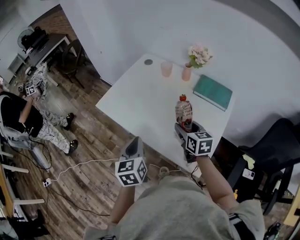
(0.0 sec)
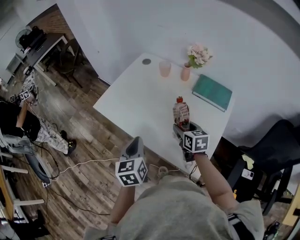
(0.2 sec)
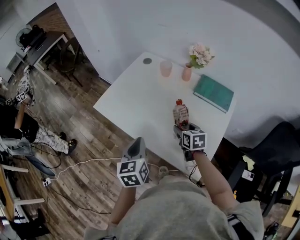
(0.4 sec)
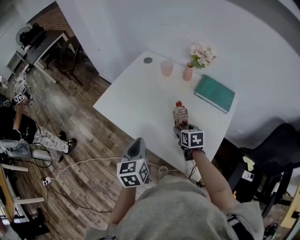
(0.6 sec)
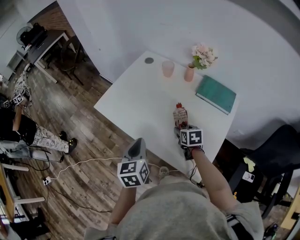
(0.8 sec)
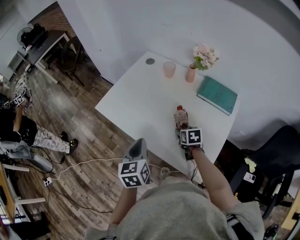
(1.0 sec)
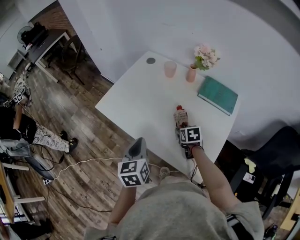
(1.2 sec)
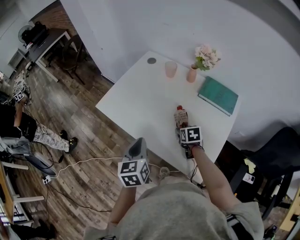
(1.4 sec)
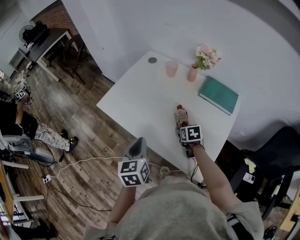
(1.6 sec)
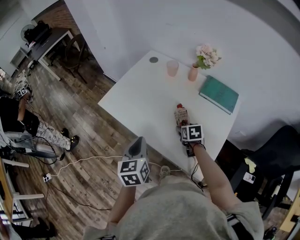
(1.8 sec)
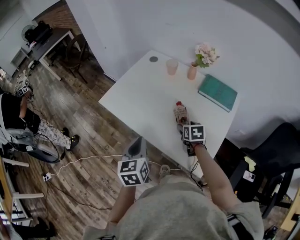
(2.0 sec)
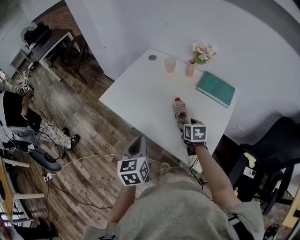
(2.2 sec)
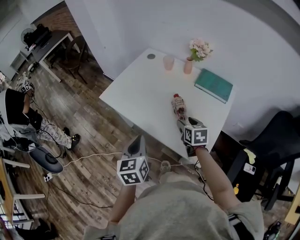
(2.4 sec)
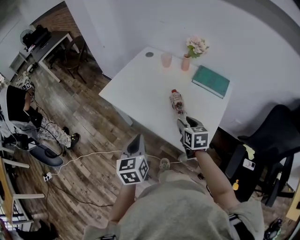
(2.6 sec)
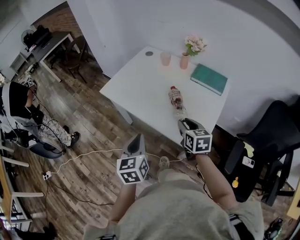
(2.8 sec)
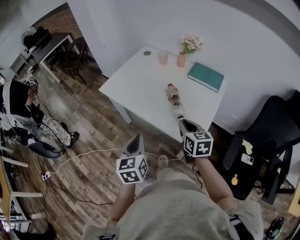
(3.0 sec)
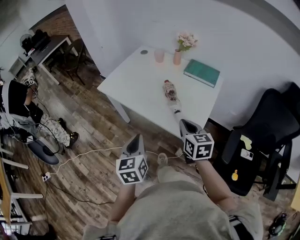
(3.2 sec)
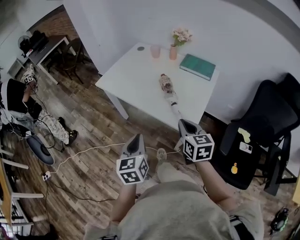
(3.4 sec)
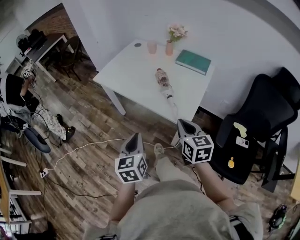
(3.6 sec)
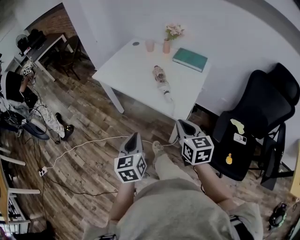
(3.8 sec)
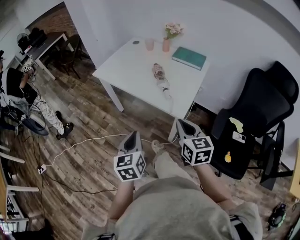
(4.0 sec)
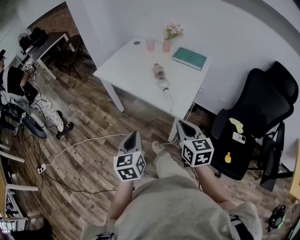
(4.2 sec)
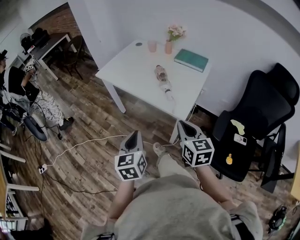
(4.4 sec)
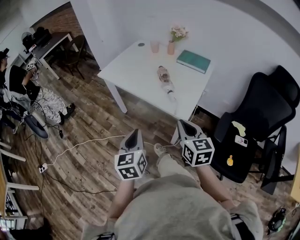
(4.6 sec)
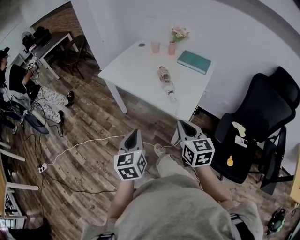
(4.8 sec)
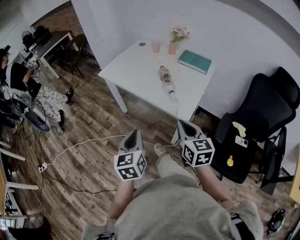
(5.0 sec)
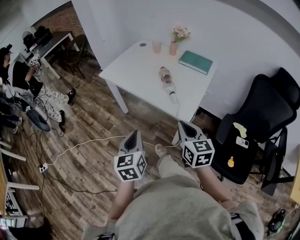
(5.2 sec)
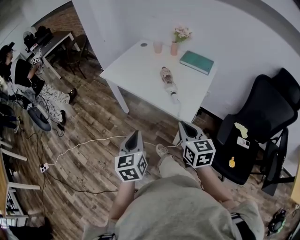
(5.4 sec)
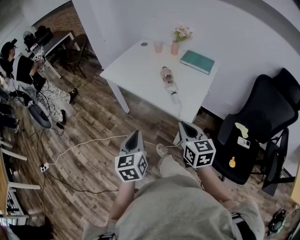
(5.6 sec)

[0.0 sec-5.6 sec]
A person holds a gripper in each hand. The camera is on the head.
0.0 sec to 1.4 sec: The right gripper heads downward, covering about 15 cm, and turns by some 30 degrees.
1.4 sec to 2.8 sec: The left gripper is displaced backward by approximately 15 cm, while the right gripper goes about 25 cm backward and upward, turns by approximately 30 degrees, and closes.
2.8 sec to 4.2 sec: Both grippers move backward, roughly 25 cm. The right gripper closes.
4.2 sec to 5.6 sec: There are only small adjustments of the grippers.

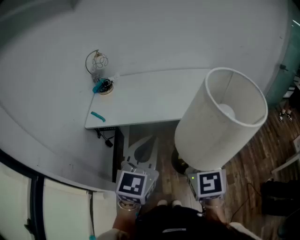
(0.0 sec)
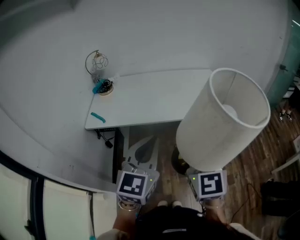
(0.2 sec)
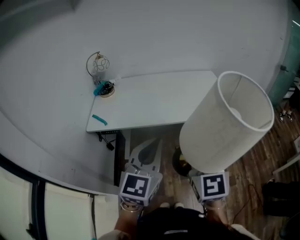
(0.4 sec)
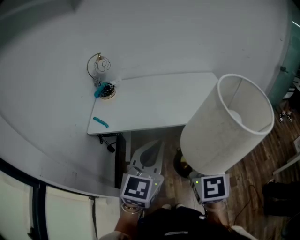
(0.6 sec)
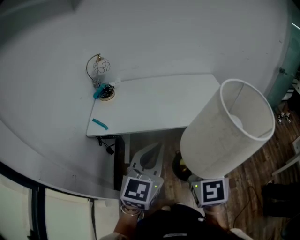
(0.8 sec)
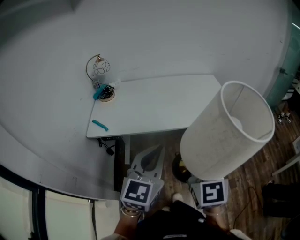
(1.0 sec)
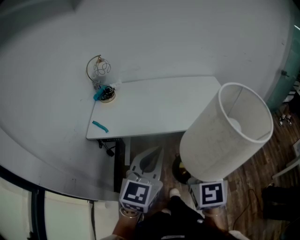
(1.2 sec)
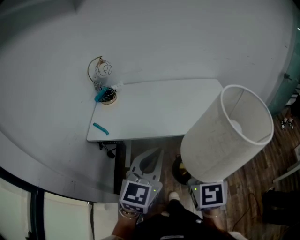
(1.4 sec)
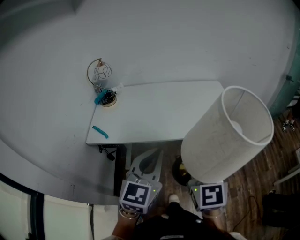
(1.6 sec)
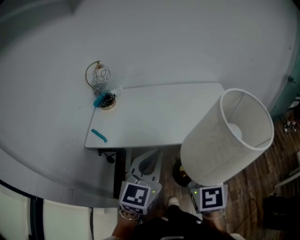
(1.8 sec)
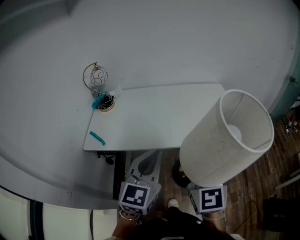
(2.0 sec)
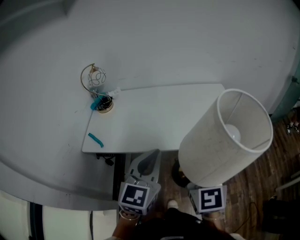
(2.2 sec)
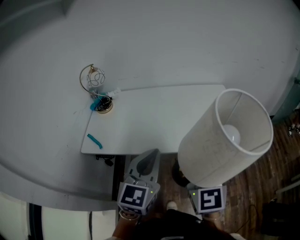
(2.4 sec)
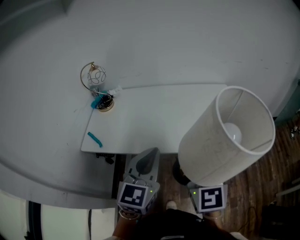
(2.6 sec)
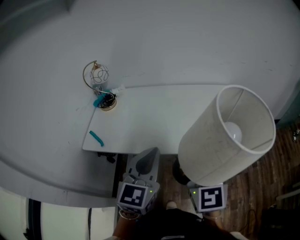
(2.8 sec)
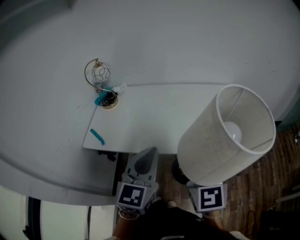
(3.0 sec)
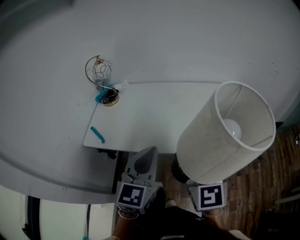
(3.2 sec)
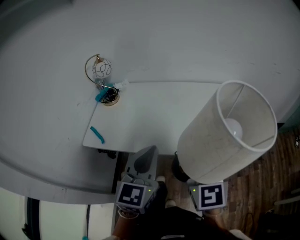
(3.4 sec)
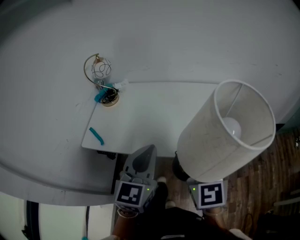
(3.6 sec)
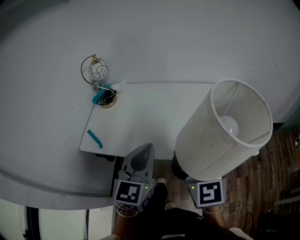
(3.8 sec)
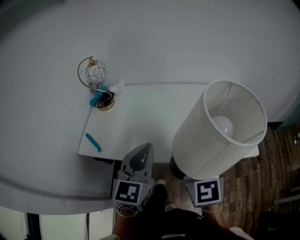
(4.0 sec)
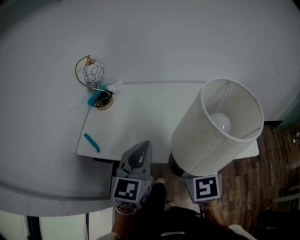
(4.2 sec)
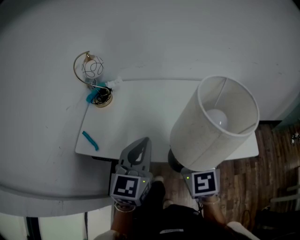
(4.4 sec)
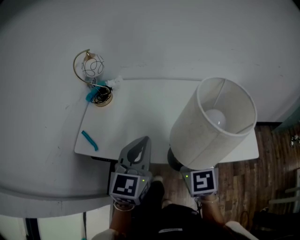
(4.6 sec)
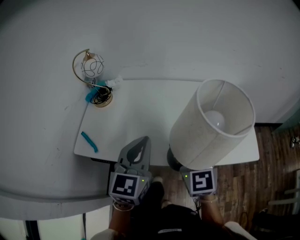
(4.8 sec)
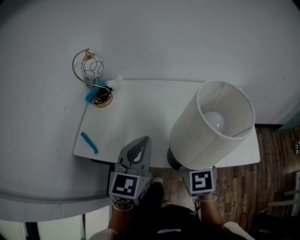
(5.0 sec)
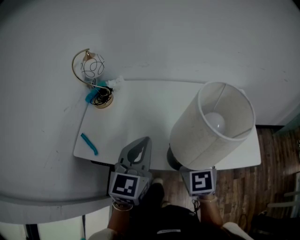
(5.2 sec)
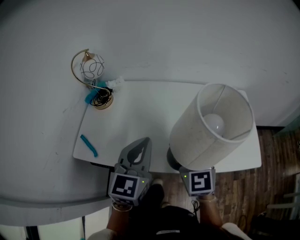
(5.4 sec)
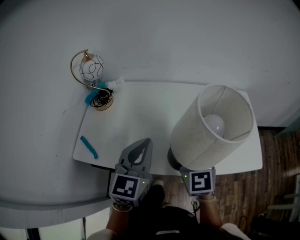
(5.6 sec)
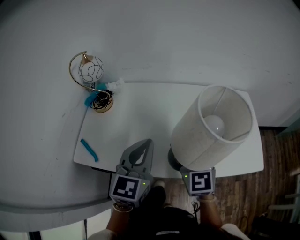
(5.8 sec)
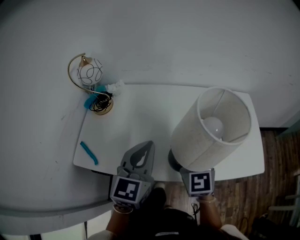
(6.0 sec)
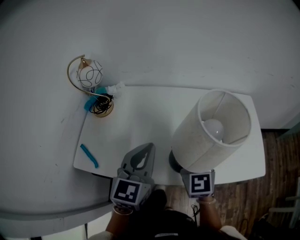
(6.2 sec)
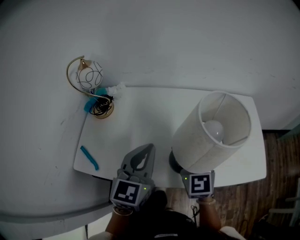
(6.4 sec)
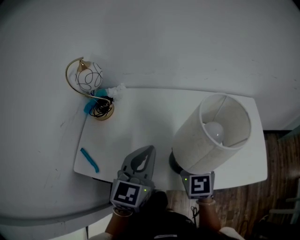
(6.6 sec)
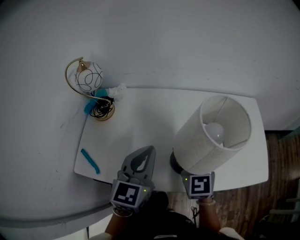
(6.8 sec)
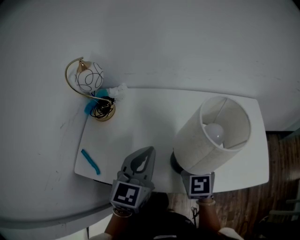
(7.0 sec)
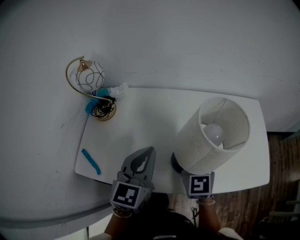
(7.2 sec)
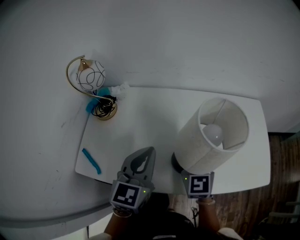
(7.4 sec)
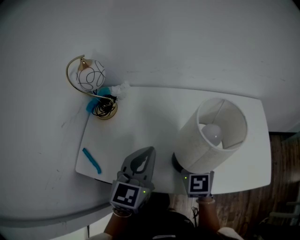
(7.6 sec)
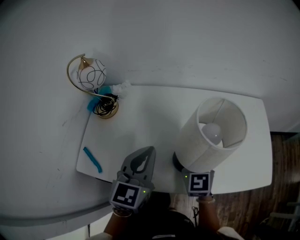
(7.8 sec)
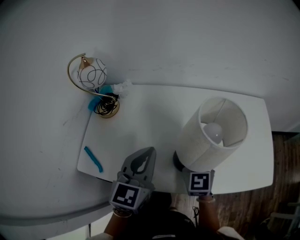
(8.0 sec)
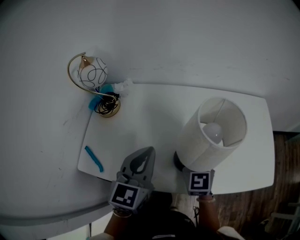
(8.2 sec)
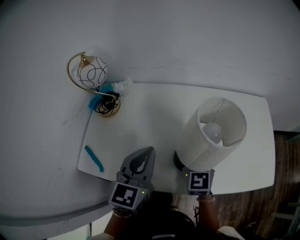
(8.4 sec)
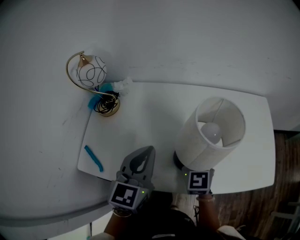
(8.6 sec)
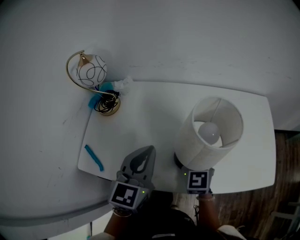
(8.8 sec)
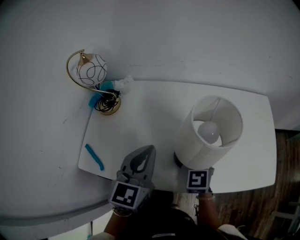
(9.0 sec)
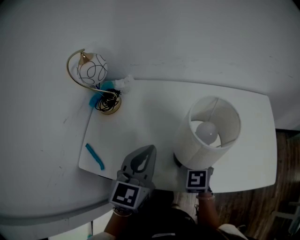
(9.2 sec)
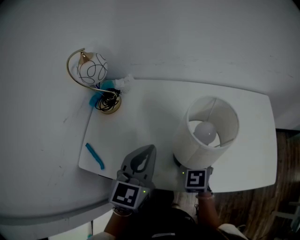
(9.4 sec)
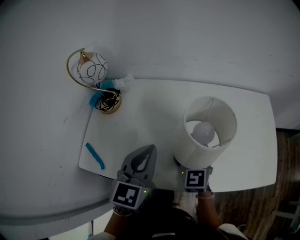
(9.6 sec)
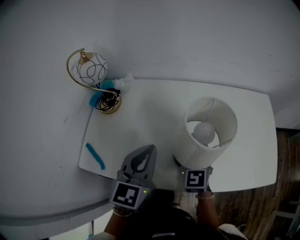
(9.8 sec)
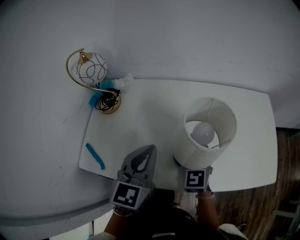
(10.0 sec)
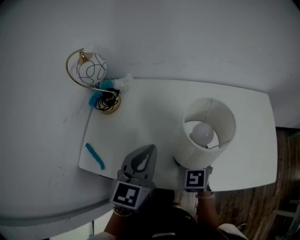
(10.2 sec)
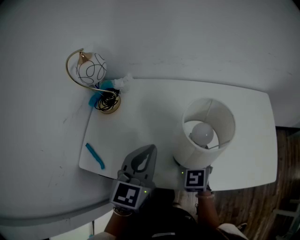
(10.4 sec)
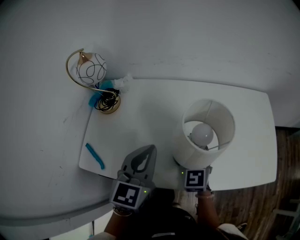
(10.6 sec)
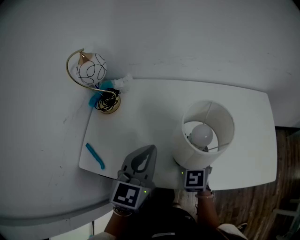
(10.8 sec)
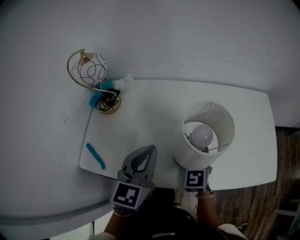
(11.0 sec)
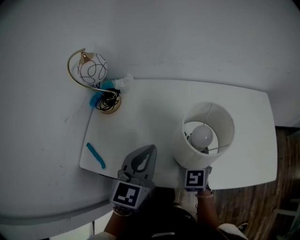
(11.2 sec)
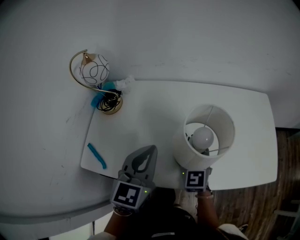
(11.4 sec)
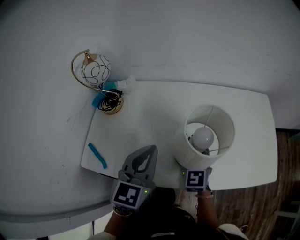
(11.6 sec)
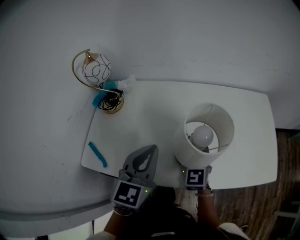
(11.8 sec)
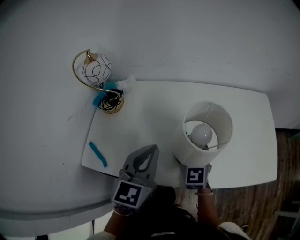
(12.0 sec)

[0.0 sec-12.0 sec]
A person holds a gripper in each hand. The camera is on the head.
0.0 sec to 1.6 sec: The two grippers go roughly 10 cm forward.
1.6 sec to 3.0 sec: Both grippers travel together forward, some 15 cm.
3.0 sec to 4.4 sec: The right gripper is displaced forward by approximately 15 cm. The left gripper shifts approximately 15 cm forward and to the left.
4.4 sec to 6.0 sec: The left gripper is displaced forward by some 10 cm. Meanwhile the right gripper goes roughly 15 cm forward and downward.
6.0 sec to 7.6 sec: The left gripper moves forward, some 5 cm. The right gripper moves forward and downward, roughly 10 cm.
7.6 sec to 12.0 sec: The grippers make only small movements.

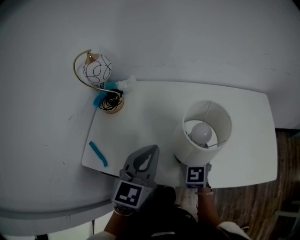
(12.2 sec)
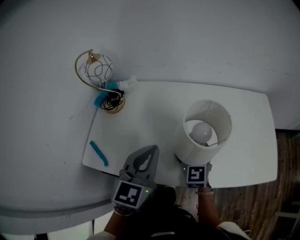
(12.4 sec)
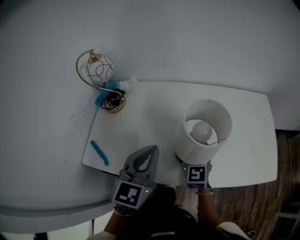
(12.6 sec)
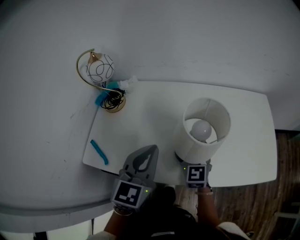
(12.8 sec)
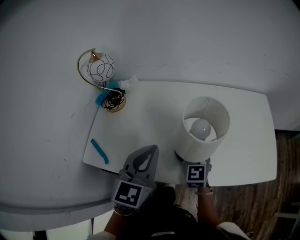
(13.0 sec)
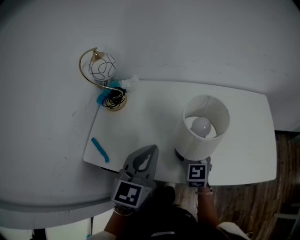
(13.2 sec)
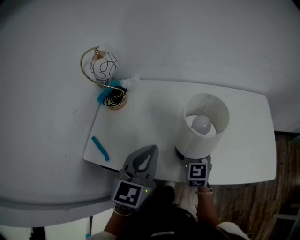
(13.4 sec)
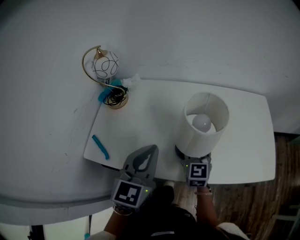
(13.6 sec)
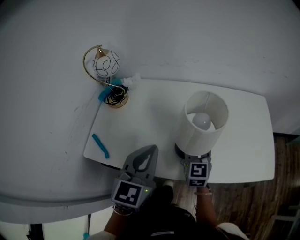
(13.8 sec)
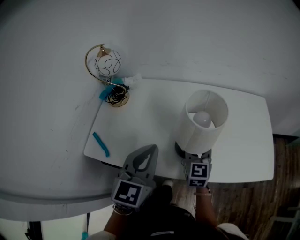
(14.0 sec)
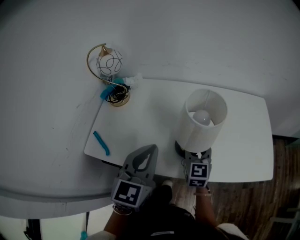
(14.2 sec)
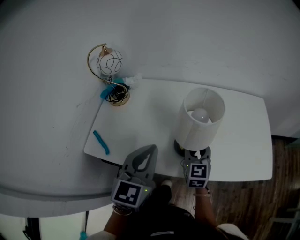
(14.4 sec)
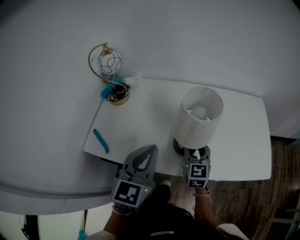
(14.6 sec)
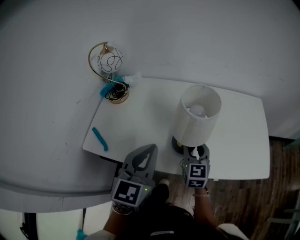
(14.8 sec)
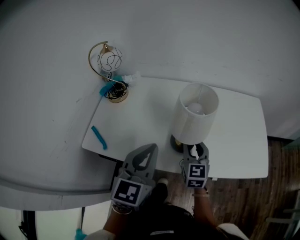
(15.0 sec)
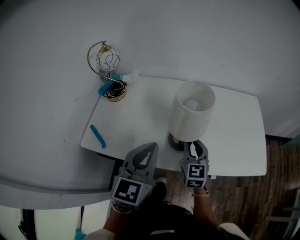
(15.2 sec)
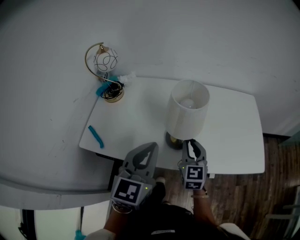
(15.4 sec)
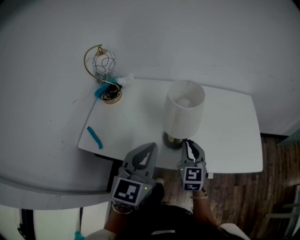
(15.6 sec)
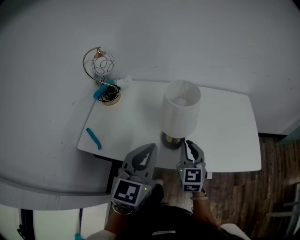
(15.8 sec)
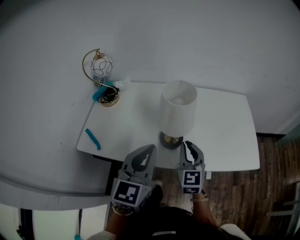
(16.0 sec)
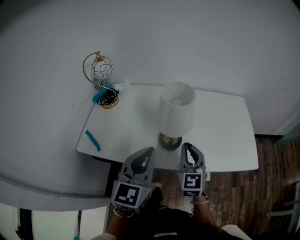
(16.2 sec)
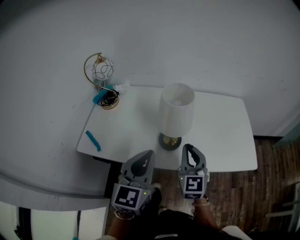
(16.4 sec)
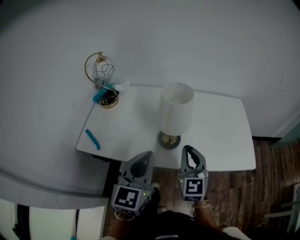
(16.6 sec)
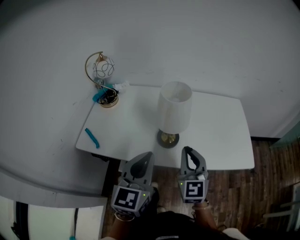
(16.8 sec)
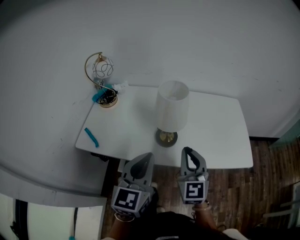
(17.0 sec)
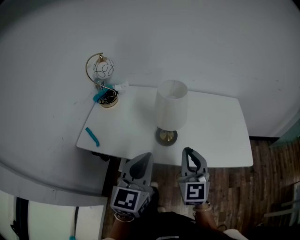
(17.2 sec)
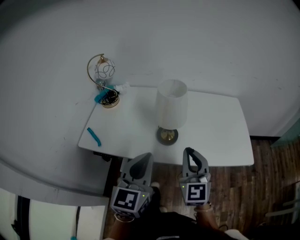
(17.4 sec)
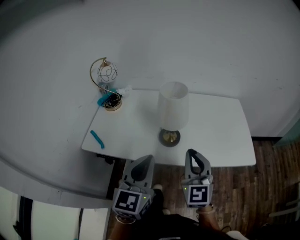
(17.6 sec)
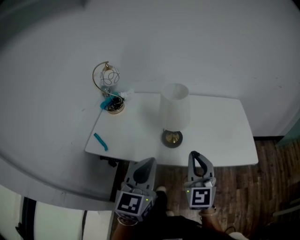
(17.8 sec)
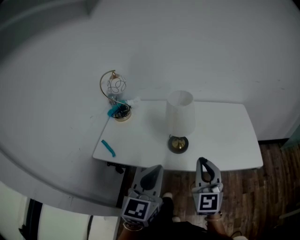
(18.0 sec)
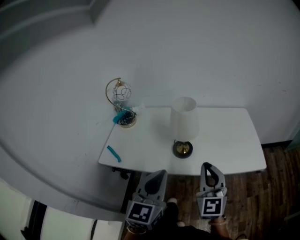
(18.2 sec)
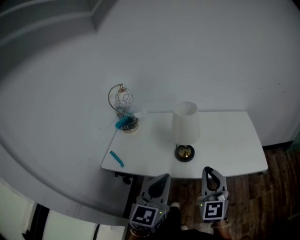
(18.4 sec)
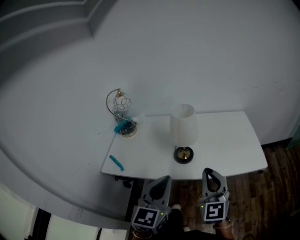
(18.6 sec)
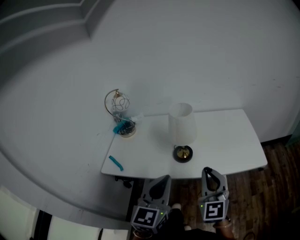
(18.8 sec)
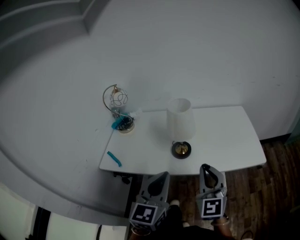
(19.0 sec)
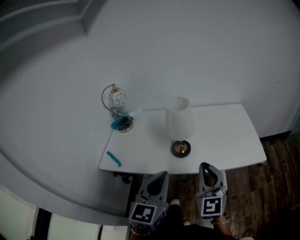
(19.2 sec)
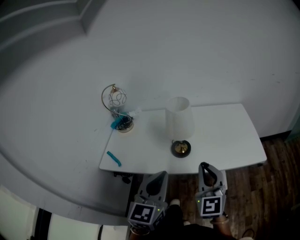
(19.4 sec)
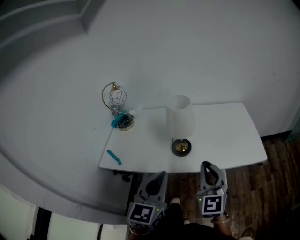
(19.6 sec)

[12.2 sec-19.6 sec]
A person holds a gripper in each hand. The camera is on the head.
12.2 sec to 13.6 sec: There are only small adjustments of the grippers.
13.6 sec to 15.2 sec: Both grippers move backward, about 5 cm. The right gripper closes its fingers.
15.2 sec to 16.6 sec: The right gripper goes about 10 cm backward and upward. Meanwhile the left gripper heads backward, covering some 5 cm.
16.6 sec to 18.2 sec: The right gripper moves backward and upward, some 15 cm. The left gripper goes some 10 cm backward.
18.2 sec to 19.6 sec: The grippers move only a little.
